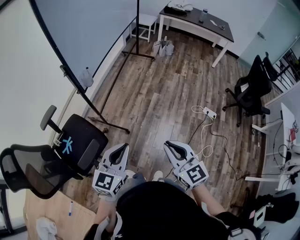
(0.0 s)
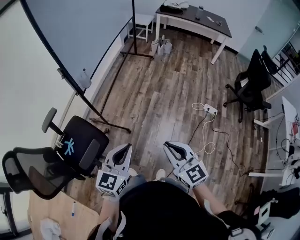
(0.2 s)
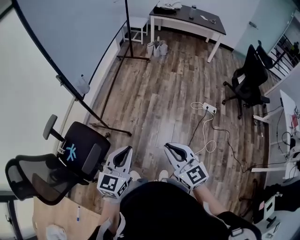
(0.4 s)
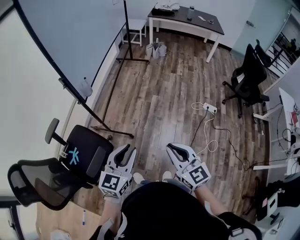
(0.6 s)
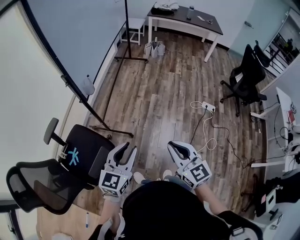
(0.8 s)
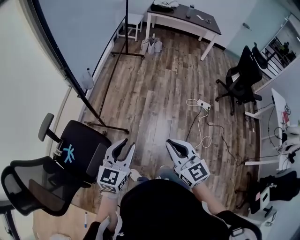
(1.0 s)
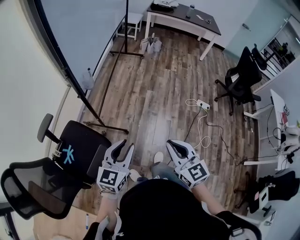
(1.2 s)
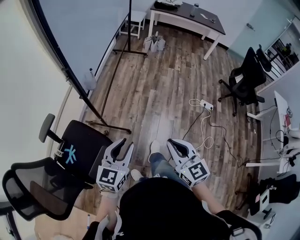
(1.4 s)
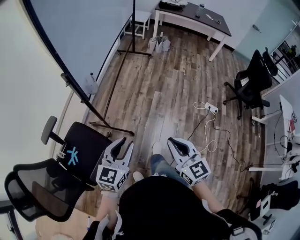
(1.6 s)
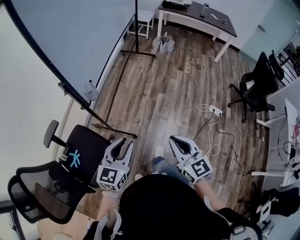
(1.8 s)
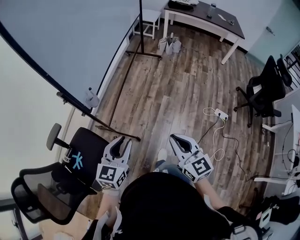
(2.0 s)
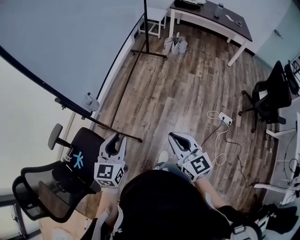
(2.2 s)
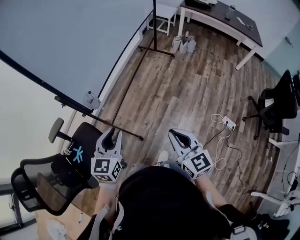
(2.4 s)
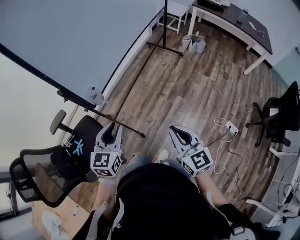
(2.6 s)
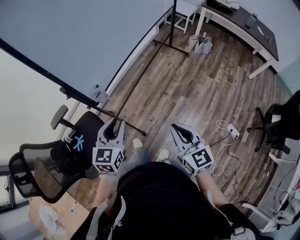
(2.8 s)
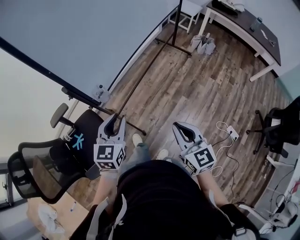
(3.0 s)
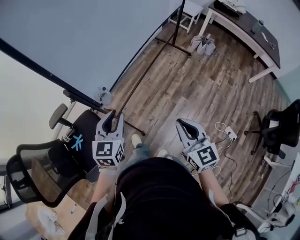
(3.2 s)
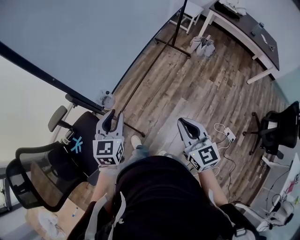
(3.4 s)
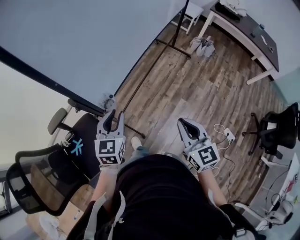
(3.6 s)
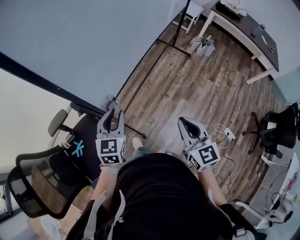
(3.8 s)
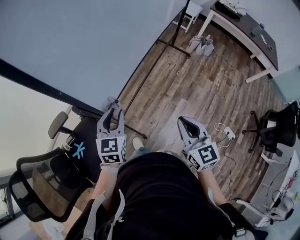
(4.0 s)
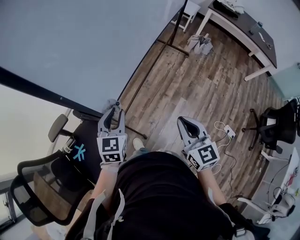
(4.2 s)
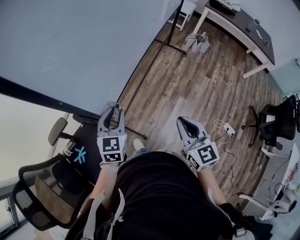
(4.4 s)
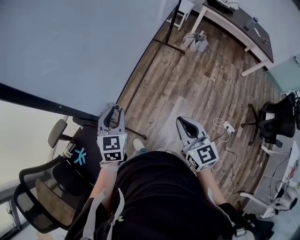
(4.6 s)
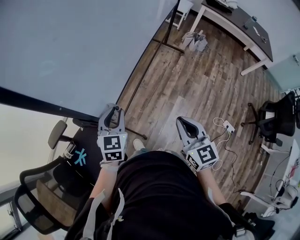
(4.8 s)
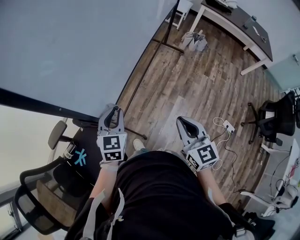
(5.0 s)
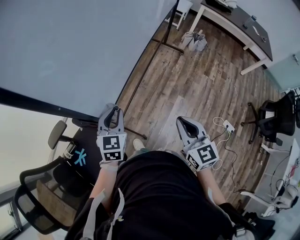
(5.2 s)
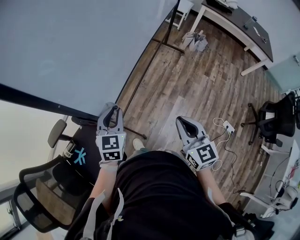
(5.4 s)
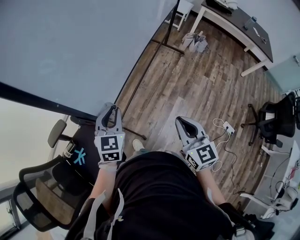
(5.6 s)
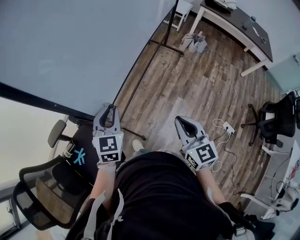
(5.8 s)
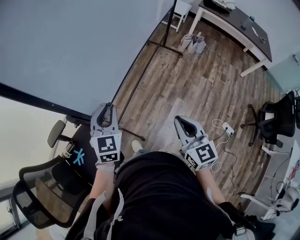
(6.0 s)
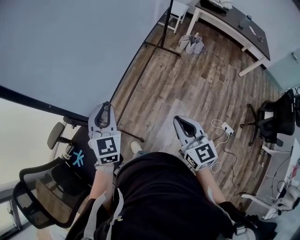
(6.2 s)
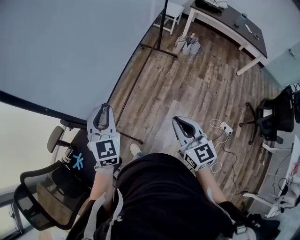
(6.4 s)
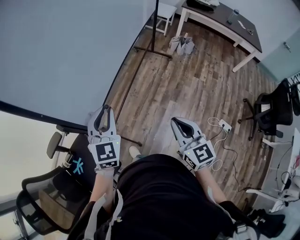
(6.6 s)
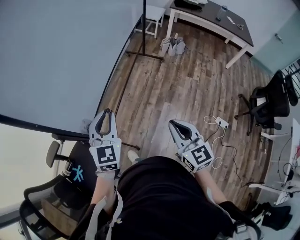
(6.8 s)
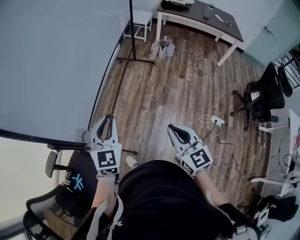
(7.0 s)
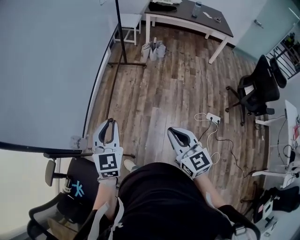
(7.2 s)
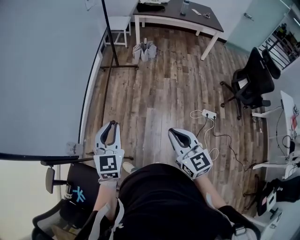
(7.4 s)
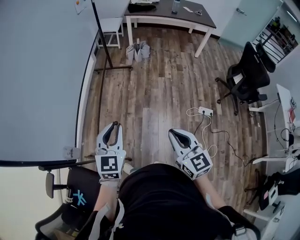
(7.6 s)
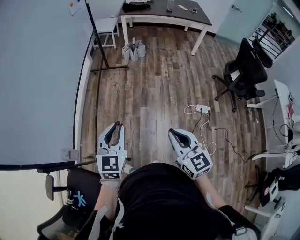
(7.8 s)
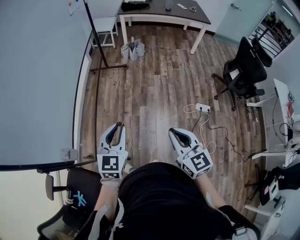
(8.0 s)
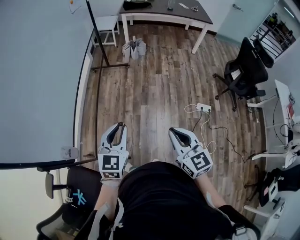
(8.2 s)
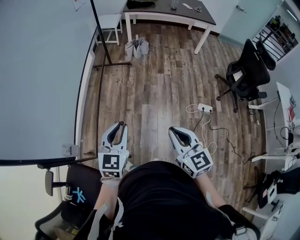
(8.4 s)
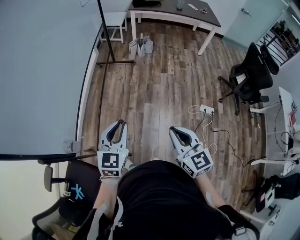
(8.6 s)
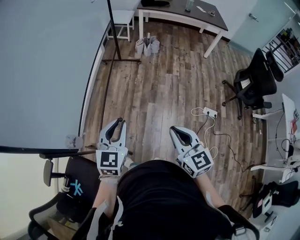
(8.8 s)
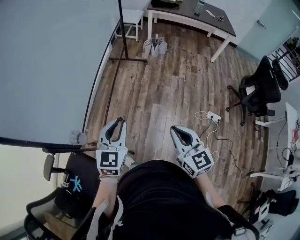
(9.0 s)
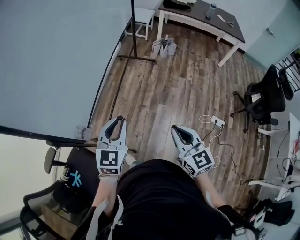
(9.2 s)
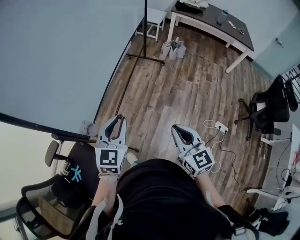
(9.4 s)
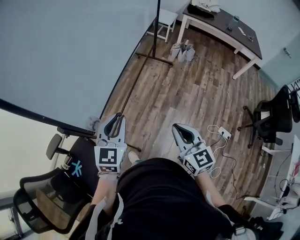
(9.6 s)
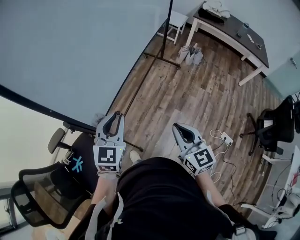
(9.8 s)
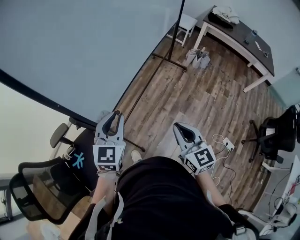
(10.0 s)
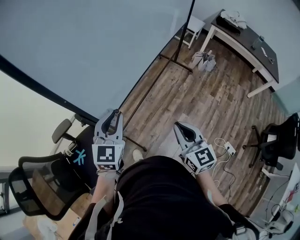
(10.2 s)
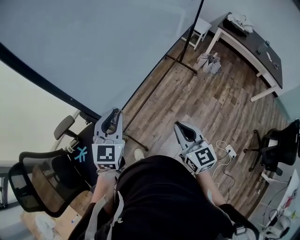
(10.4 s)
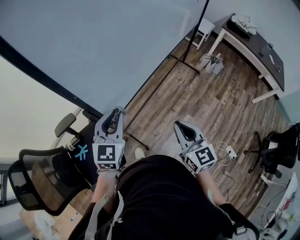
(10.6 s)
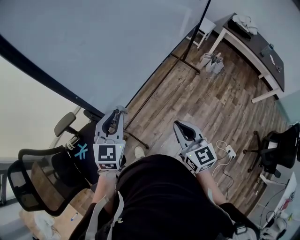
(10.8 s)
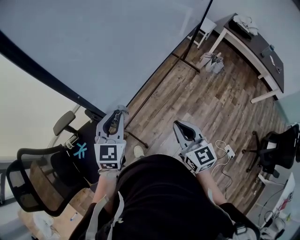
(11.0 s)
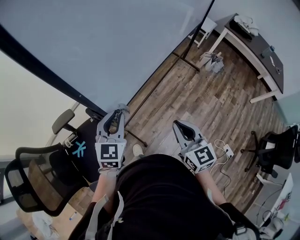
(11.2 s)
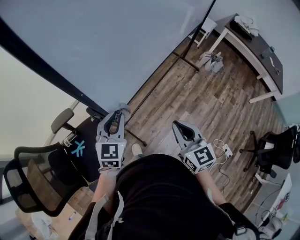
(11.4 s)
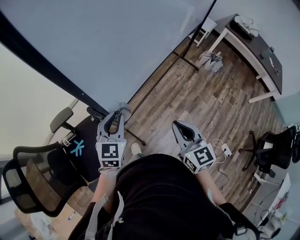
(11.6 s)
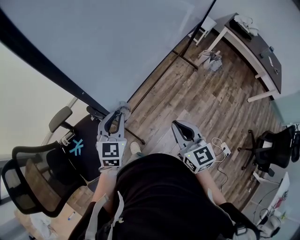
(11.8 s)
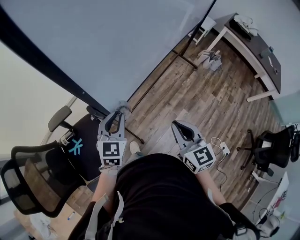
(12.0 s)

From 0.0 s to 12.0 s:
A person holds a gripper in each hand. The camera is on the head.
From 0.0 s to 1.6 s: Both grippers move forward and to the left, approximately 10 cm. The left gripper opens.
From 1.6 s to 3.0 s: The left gripper ends up about 25 cm from where it was, and changes its angle by some 30 degrees, while the right gripper shifts by about 30 cm.
From 3.0 s to 4.4 s: The grippers both shift forward and to the left by some 15 cm.
From 4.4 s to 6.0 s: The left gripper is displaced upward by roughly 5 cm.
From 6.0 s to 7.6 s: The left gripper changes place by approximately 25 cm, and turns by approximately 30 degrees. The right gripper ends up roughly 20 cm from where it was, and rotates roughly 20 degrees.
From 7.6 s to 9.0 s: The grippers move only a little.
From 9.0 s to 10.4 s: The left gripper shifts by about 25 cm, and turns by about 30 degrees, while the right gripper changes place by approximately 20 cm, and rotates roughly 20 degrees.
From 10.4 s to 12.0 s: The right gripper heads to the left, covering roughly 5 cm; the left gripper goes about 10 cm downward and to the left.

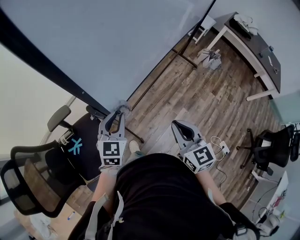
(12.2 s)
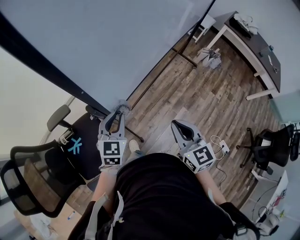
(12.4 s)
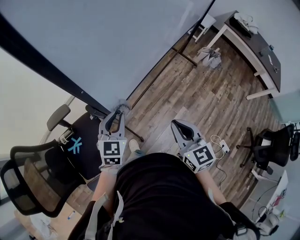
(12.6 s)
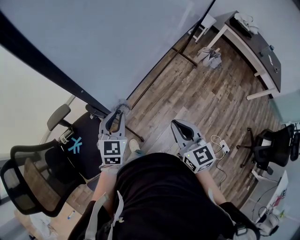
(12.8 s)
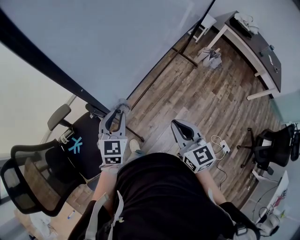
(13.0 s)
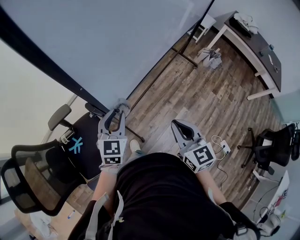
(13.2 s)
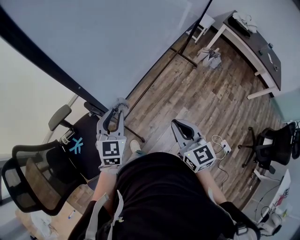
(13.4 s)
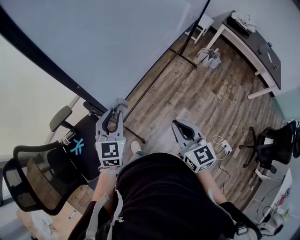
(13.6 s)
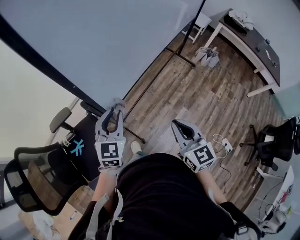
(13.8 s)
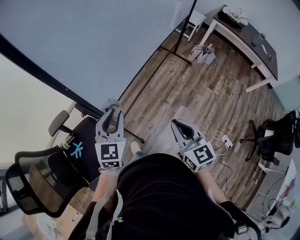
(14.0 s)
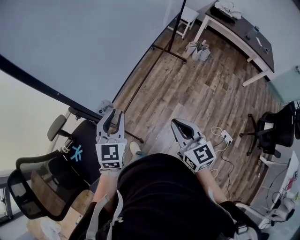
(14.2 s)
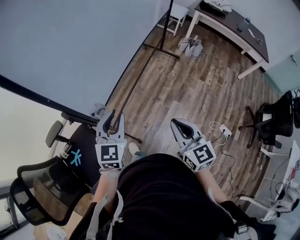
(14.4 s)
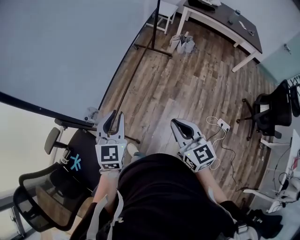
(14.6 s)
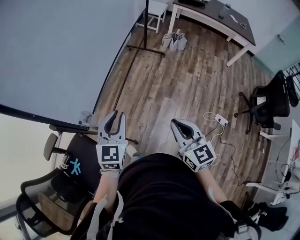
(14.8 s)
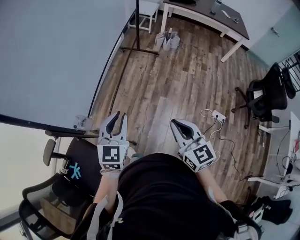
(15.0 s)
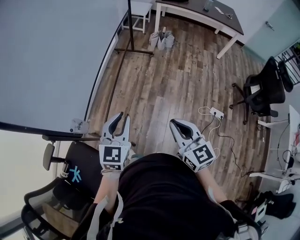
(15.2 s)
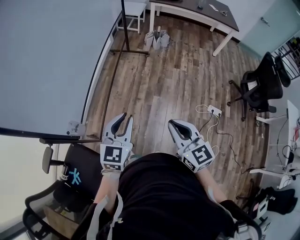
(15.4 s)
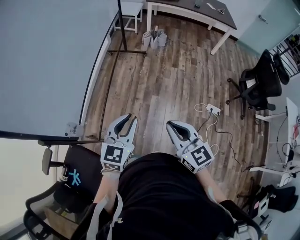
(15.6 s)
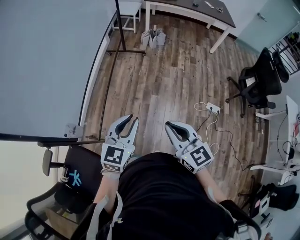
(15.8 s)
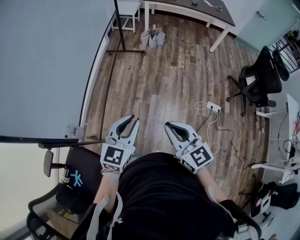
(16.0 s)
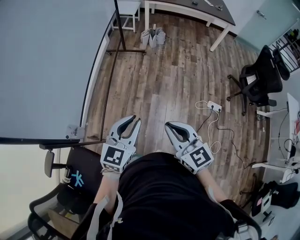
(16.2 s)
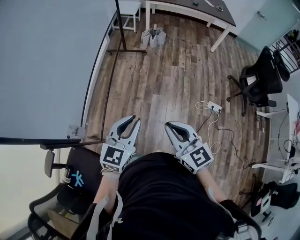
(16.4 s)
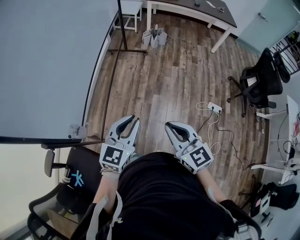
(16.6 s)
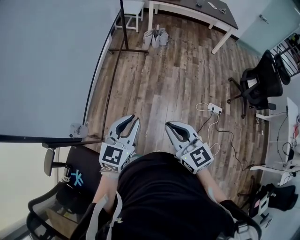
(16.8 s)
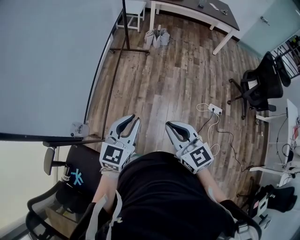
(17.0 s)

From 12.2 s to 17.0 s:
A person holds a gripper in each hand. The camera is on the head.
From 12.2 s to 13.8 s: The left gripper heads upward, covering approximately 5 cm.
From 13.8 s to 15.4 s: The right gripper shifts by approximately 20 cm, and changes its angle by roughly 20 degrees, while the left gripper ends up approximately 30 cm from where it was, and rotates some 40 degrees.
From 15.4 s to 17.0 s: The grippers make only small movements.

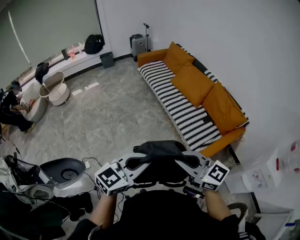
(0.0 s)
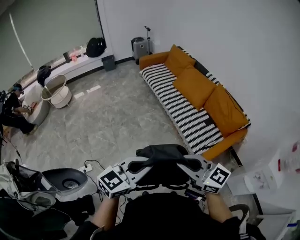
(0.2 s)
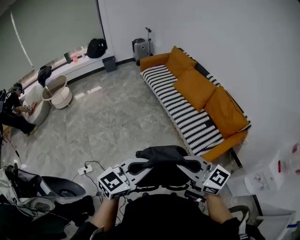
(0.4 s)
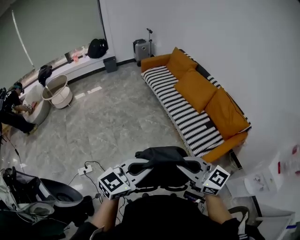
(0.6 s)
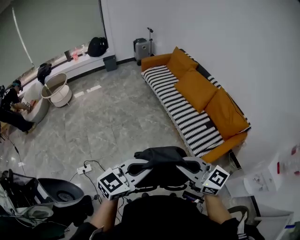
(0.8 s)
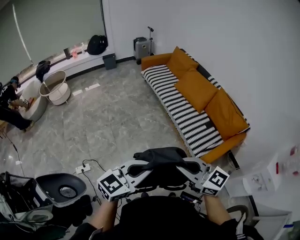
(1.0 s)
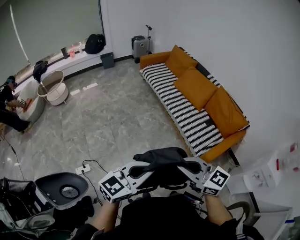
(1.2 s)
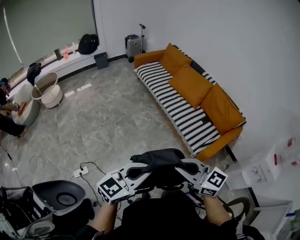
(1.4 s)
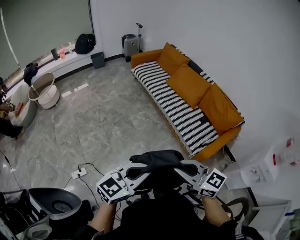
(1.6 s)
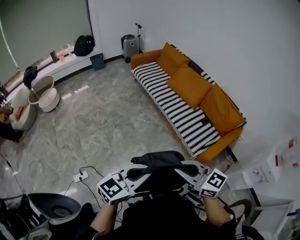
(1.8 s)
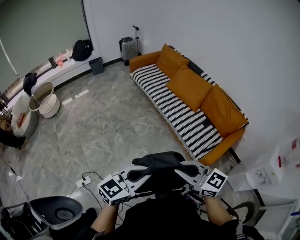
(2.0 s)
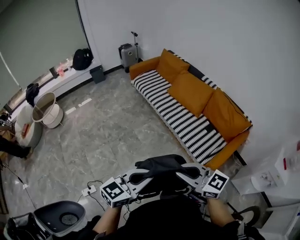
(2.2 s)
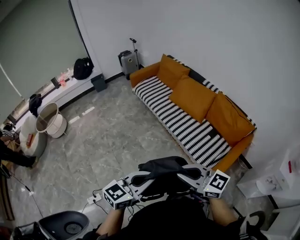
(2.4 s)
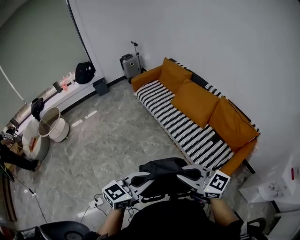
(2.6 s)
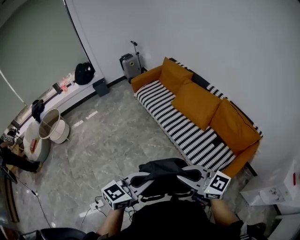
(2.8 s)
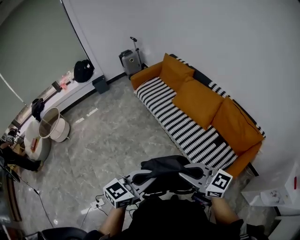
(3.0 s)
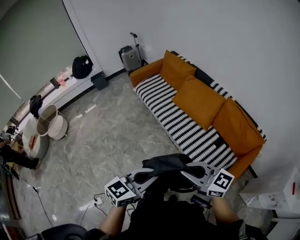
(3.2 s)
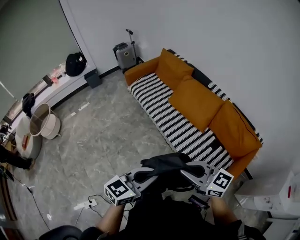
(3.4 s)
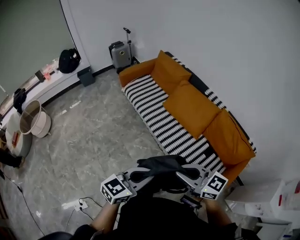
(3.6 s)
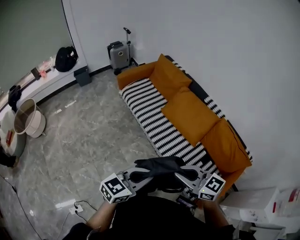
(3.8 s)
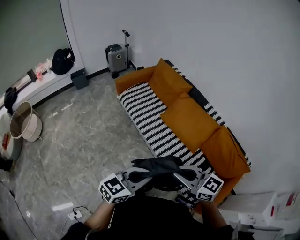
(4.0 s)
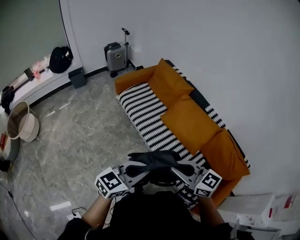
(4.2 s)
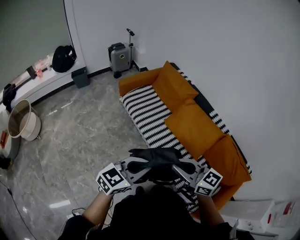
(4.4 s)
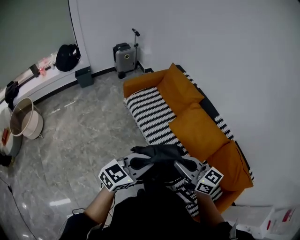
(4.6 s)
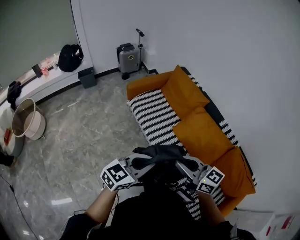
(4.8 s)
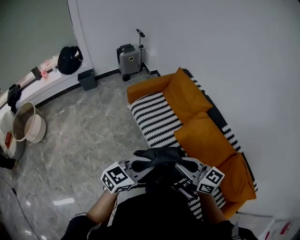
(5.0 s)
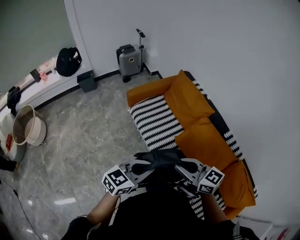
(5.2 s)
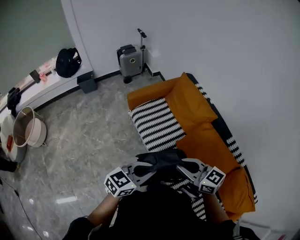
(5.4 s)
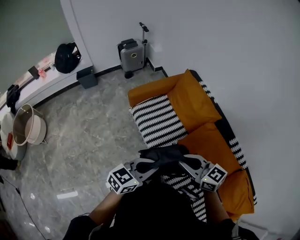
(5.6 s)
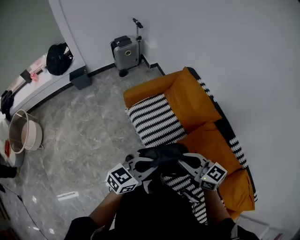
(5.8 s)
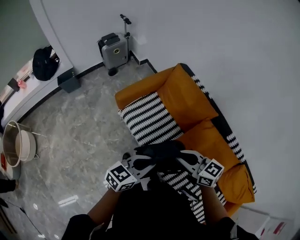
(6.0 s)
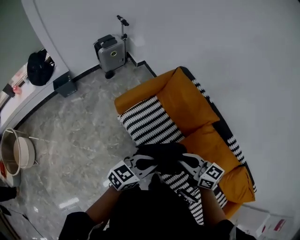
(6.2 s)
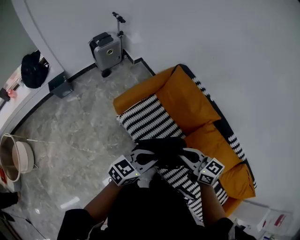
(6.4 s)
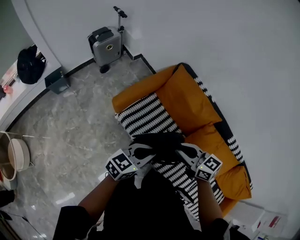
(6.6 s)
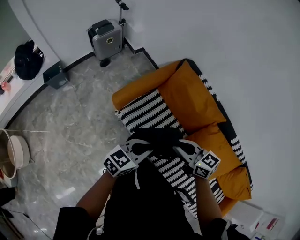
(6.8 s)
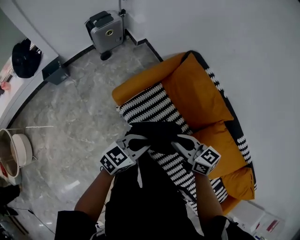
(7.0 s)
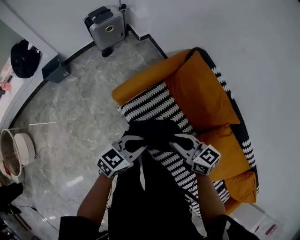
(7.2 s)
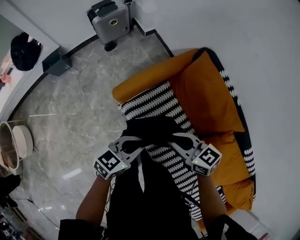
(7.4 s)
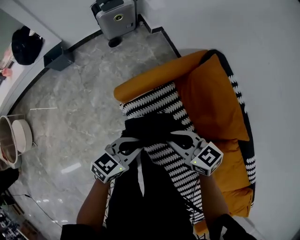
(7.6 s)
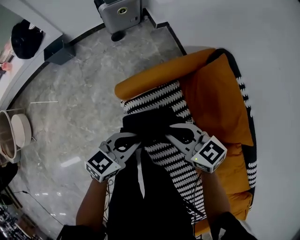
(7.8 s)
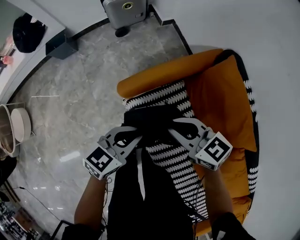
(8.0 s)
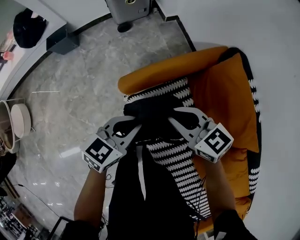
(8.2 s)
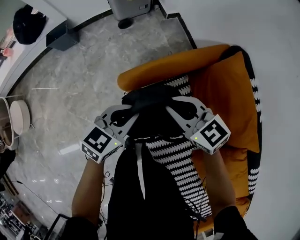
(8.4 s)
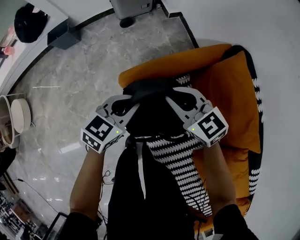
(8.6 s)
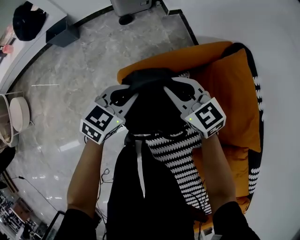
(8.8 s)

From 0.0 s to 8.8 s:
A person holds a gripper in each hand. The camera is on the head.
From 0.0 s to 1.4 s: Both grippers move to the left, approximately 10 cm.
From 1.4 s to 3.0 s: Both grippers move forward, approximately 30 cm.
From 3.0 s to 4.4 s: Both grippers travel together forward, about 35 cm.
From 4.4 s to 5.8 s: The two grippers go approximately 35 cm forward.
From 5.8 s to 7.4 s: Both grippers move forward, downward and to the left, roughly 35 cm.
From 7.4 s to 8.8 s: The grippers both shift forward and downward by approximately 20 cm. The right gripper rotates approximately 30 degrees; the left gripper rotates about 20 degrees.
